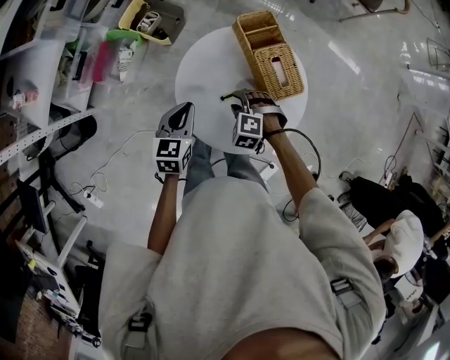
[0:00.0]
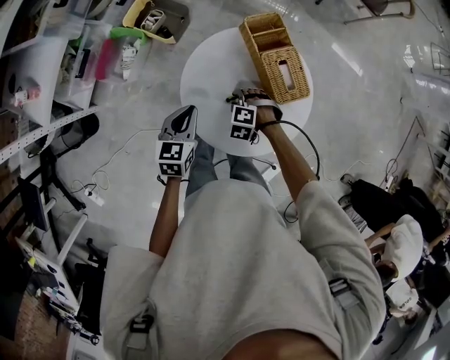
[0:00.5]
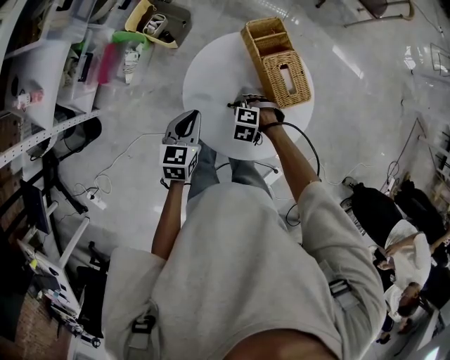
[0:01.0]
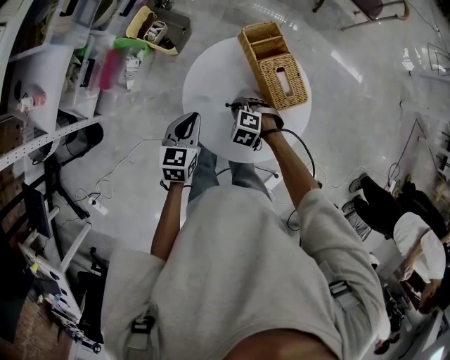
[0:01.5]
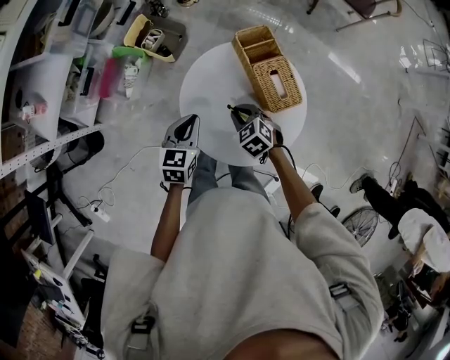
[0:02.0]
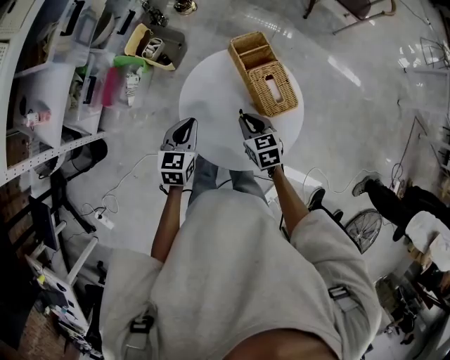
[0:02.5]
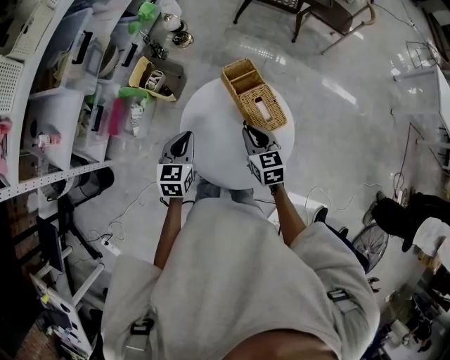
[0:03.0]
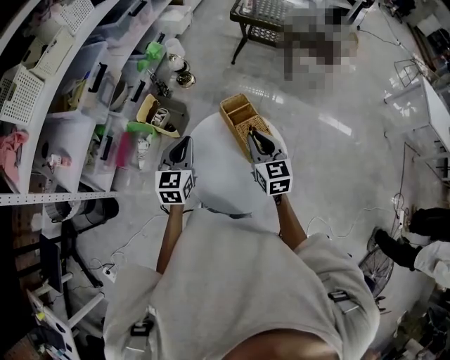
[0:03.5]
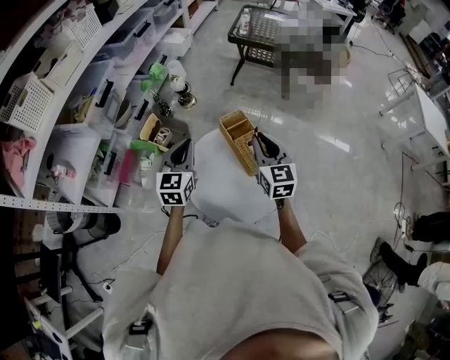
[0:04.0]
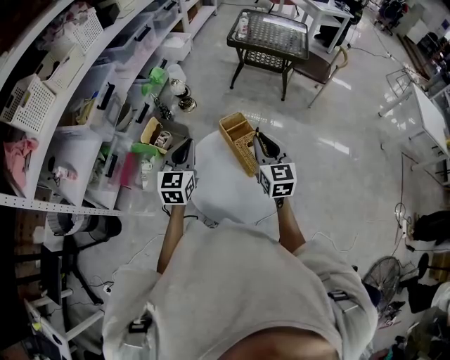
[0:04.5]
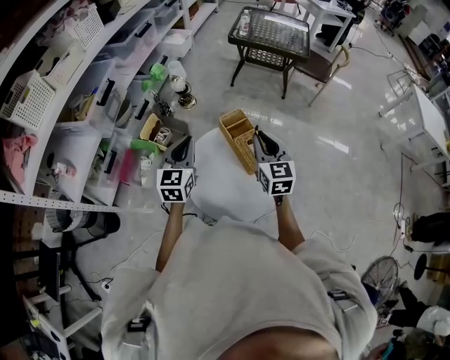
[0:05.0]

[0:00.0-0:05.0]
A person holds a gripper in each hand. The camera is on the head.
0:00.0 to 0:02.5: The right gripper is displaced upward by roughly 5 cm, rotates around the line of its fingers by roughly 60 degrees, clockwise from behind, and closes up.
0:02.5 to 0:05.0: The right gripper heads upward, covering roughly 25 cm, and tilts its fingers approximately 30 degrees upward, while the left gripper heads upward and forward, covering approximately 20 cm, and swivels some 30 degrees.

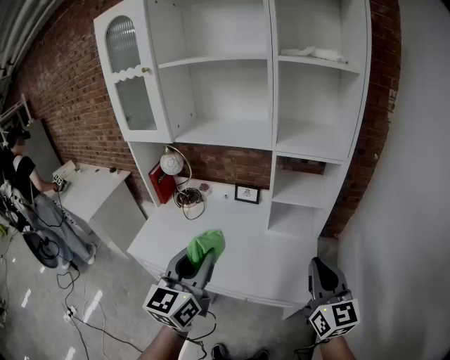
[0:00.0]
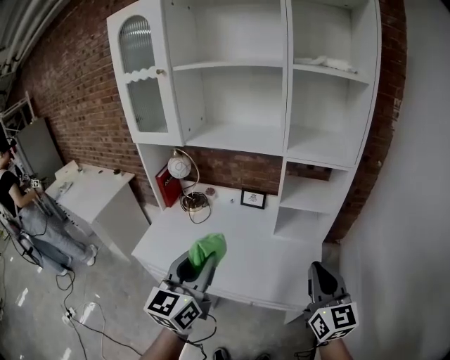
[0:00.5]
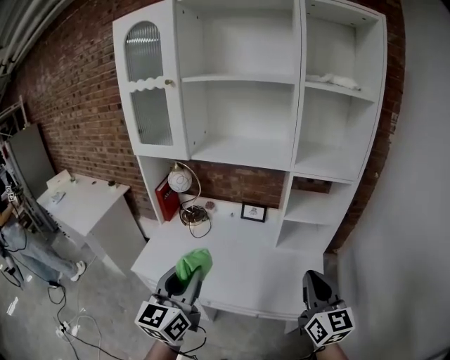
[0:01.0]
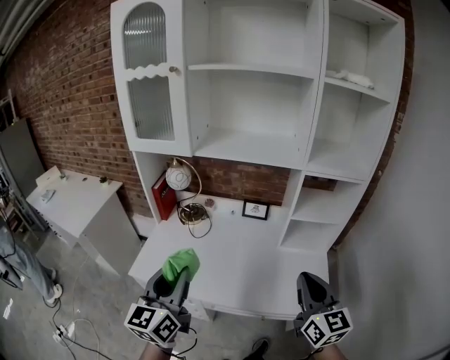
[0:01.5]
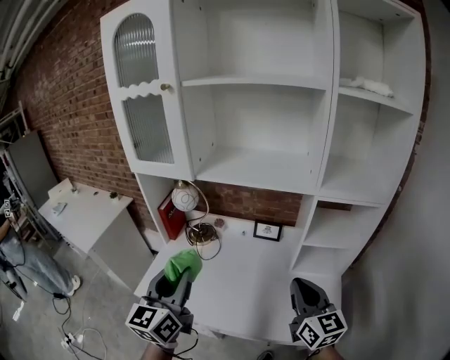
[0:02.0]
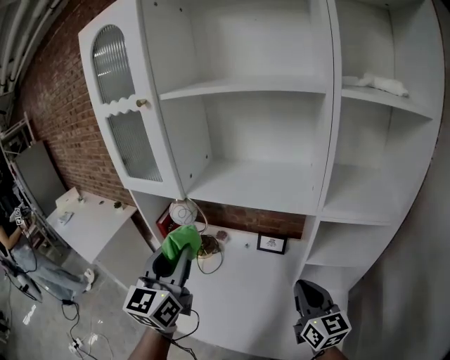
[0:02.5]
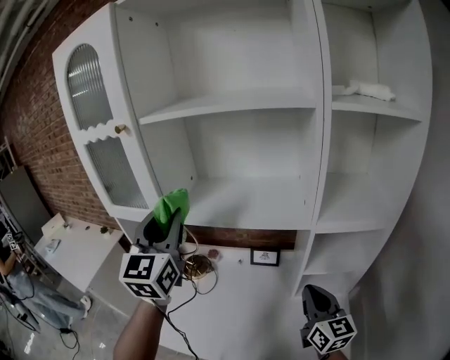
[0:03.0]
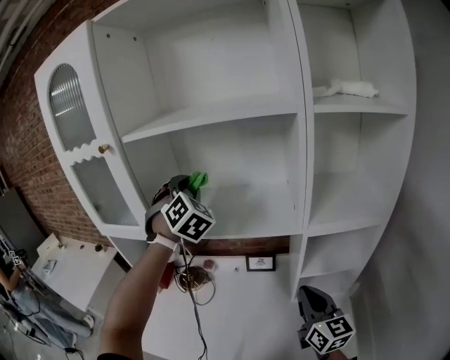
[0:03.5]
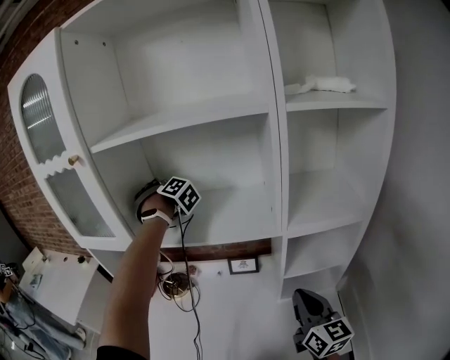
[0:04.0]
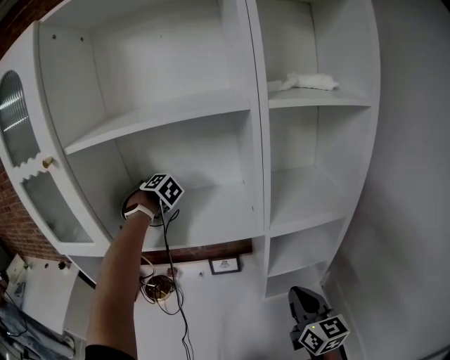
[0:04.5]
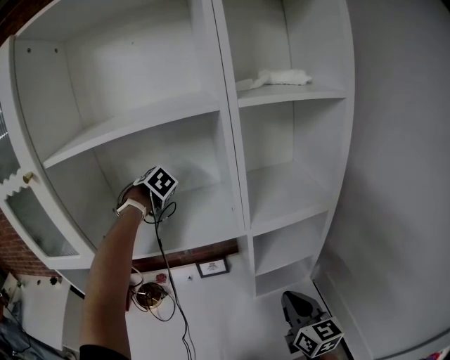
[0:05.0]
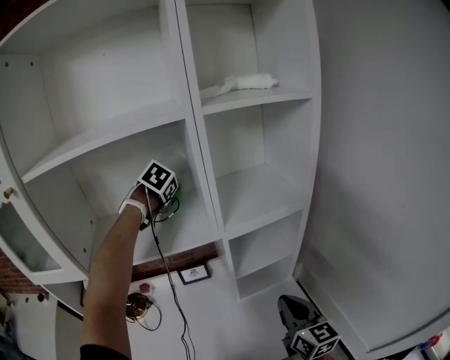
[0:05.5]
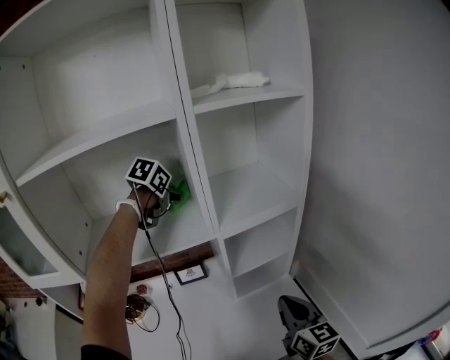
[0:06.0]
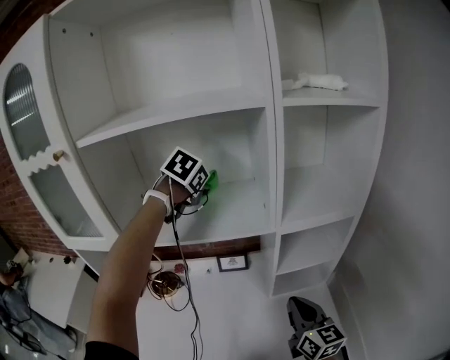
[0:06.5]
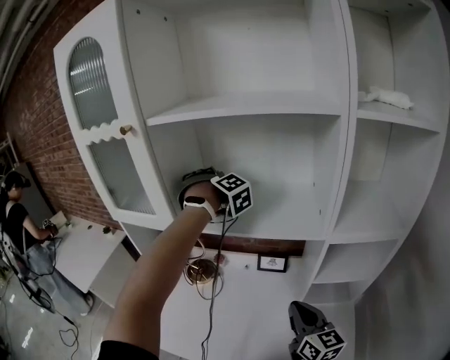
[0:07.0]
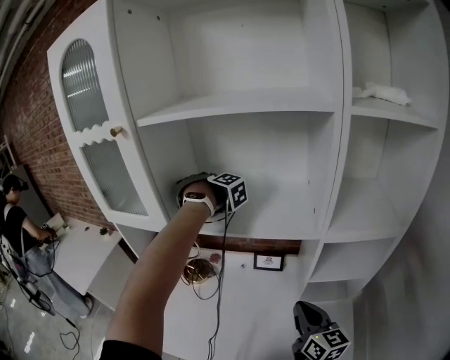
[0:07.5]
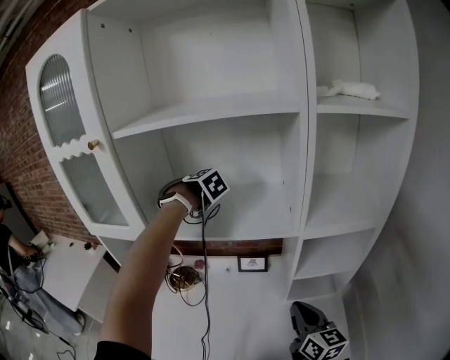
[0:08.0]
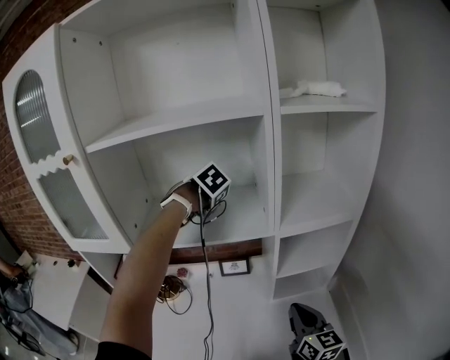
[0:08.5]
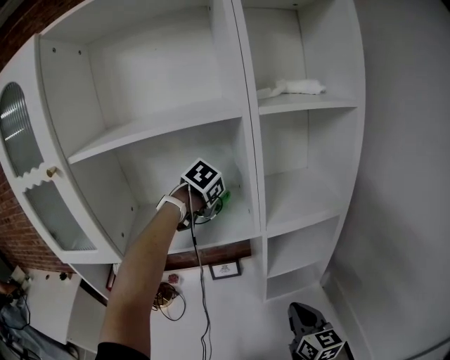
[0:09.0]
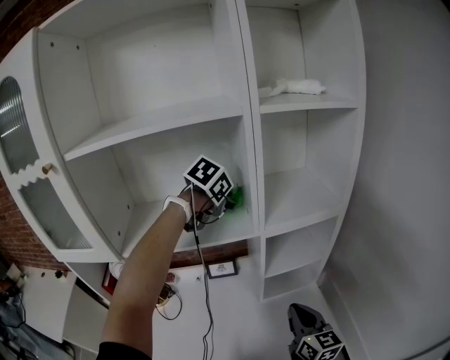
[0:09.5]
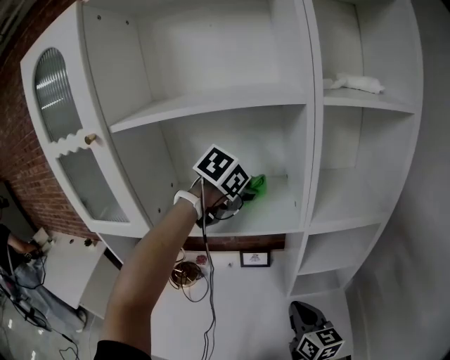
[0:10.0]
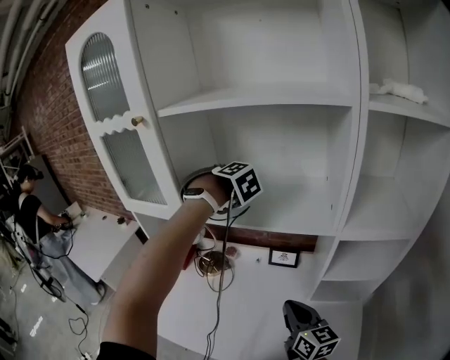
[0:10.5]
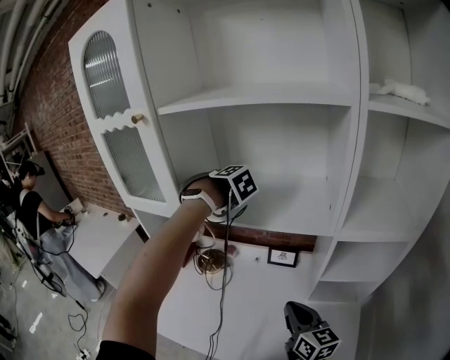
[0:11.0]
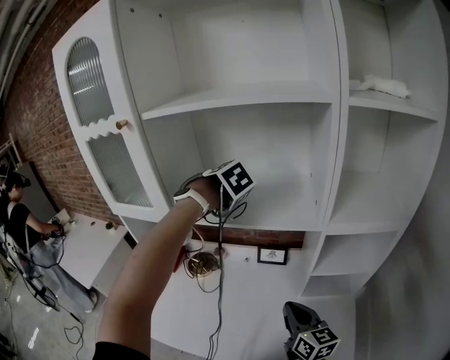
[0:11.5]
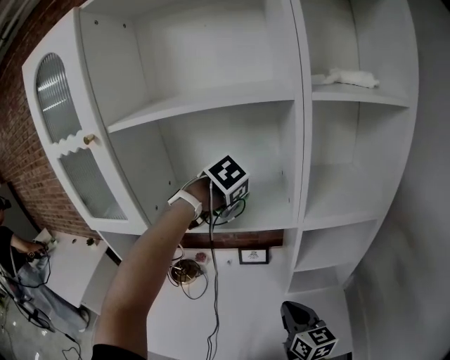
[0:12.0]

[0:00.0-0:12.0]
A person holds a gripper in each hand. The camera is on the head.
0:00.0 to 0:02.0: Both grippers travel together to the left and forward, some 25 cm.
0:02.0 to 0:04.0: The left gripper travels forward by approximately 50 cm, and points its fingers approximately 30 degrees further downward. Meanwhile the right gripper moves forward and to the right, approximately 15 cm.
0:04.0 to 0:06.0: The left gripper ends up some 30 cm from where it was, and turns by approximately 70 degrees. The right gripper shifts by about 10 cm.
0:06.0 to 0:08.0: The right gripper moves approximately 10 cm, and rotates about 20 degrees; the left gripper shifts by about 25 cm, and changes its angle by roughly 50 degrees.
0:08.0 to 0:10.0: The left gripper shifts by approximately 20 cm, and turns by approximately 50 degrees.
0:10.0 to 0:12.0: The left gripper changes its angle by about 20 degrees.

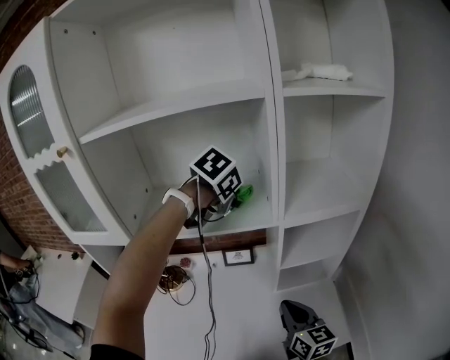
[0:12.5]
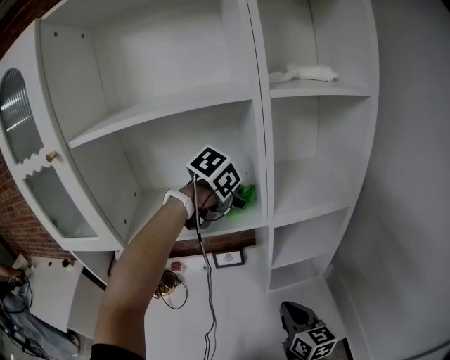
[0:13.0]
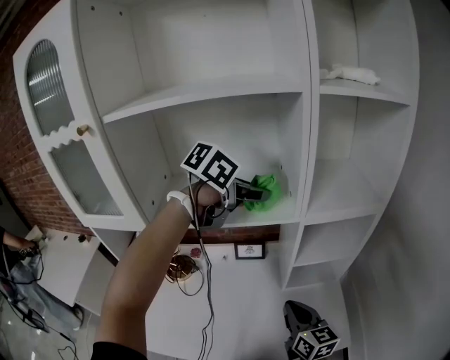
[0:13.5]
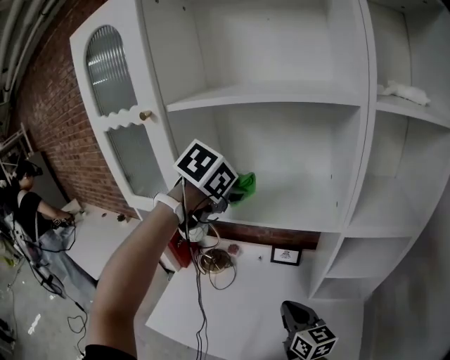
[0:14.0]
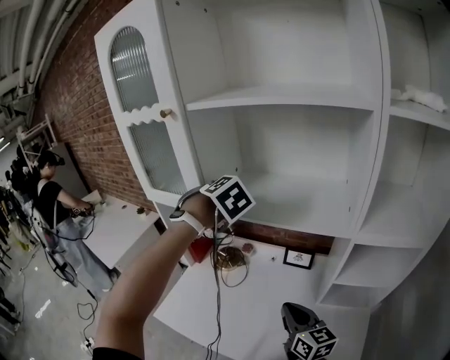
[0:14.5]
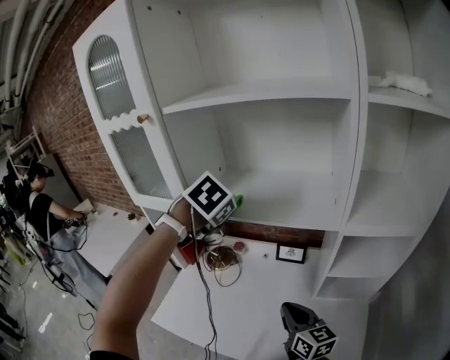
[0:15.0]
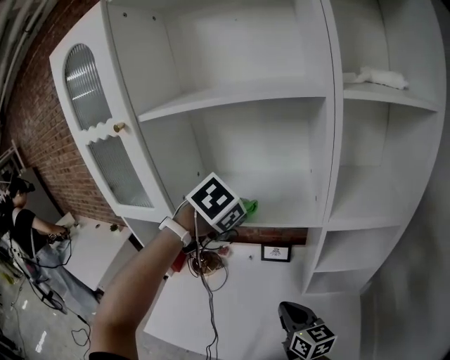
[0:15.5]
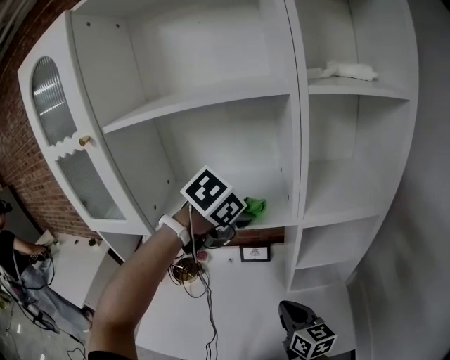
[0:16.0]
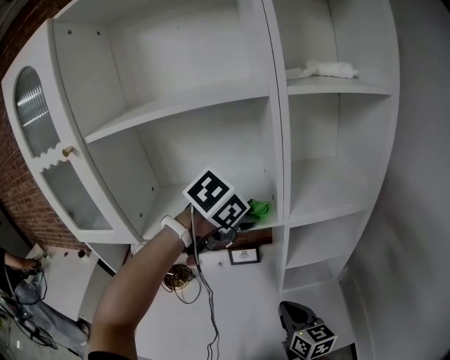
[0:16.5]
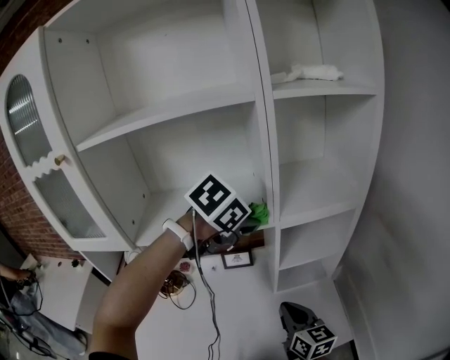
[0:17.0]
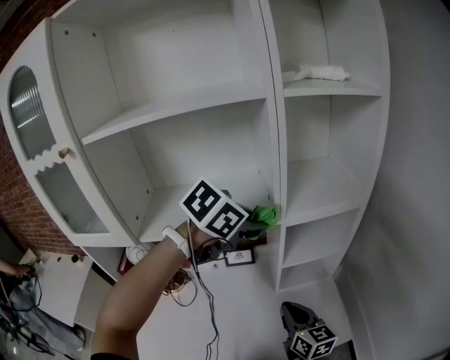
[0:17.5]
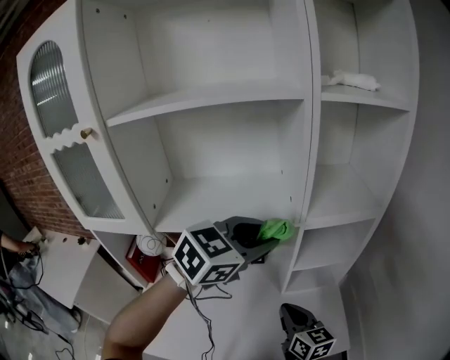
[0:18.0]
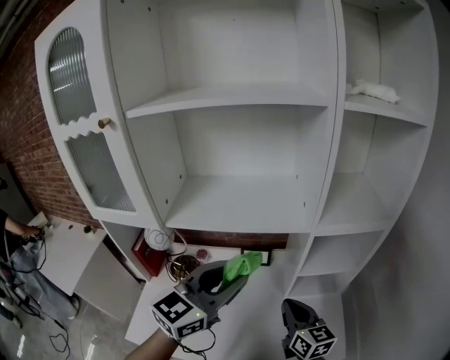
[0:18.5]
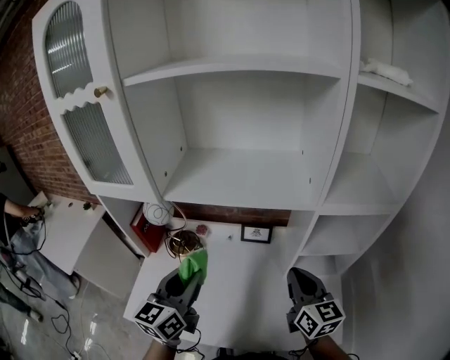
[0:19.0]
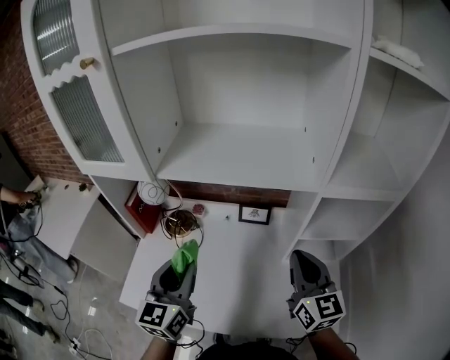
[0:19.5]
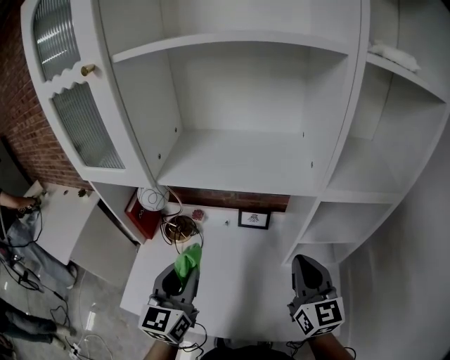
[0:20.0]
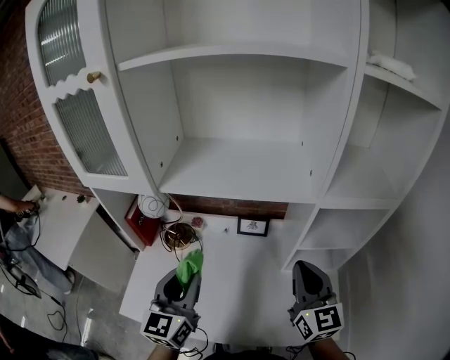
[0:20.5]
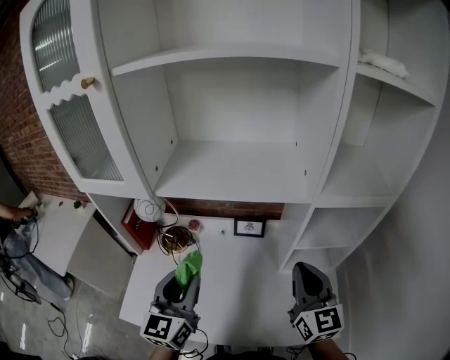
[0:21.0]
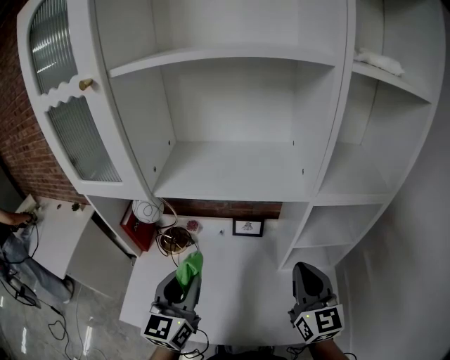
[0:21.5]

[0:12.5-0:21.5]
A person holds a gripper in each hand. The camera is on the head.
0:12.5 to 0:14.5: The right gripper shifts by roughly 10 cm, and turns by about 30 degrees; the left gripper moves some 25 cm, and changes its angle by about 40 degrees.
0:14.5 to 0:17.0: The right gripper moves some 15 cm, and turns by approximately 30 degrees; the left gripper moves roughly 30 cm, and swivels some 60 degrees.
0:17.0 to 0:19.5: The right gripper goes roughly 5 cm upward, while the left gripper moves about 35 cm, and angles its fingers upward, by about 50 degrees.
0:19.5 to 0:21.5: The grippers make only small movements.

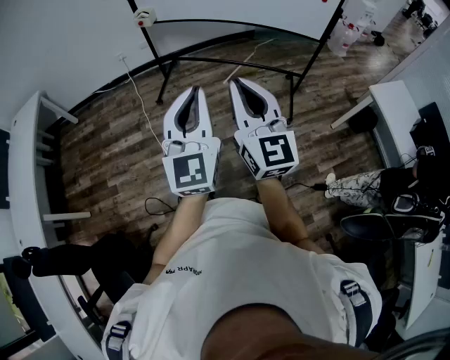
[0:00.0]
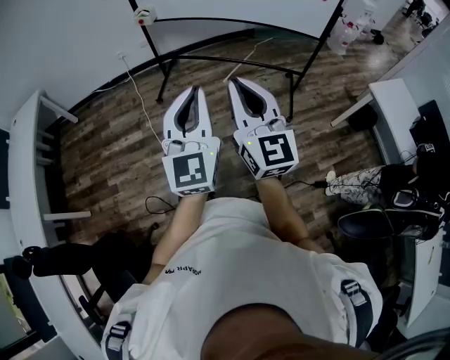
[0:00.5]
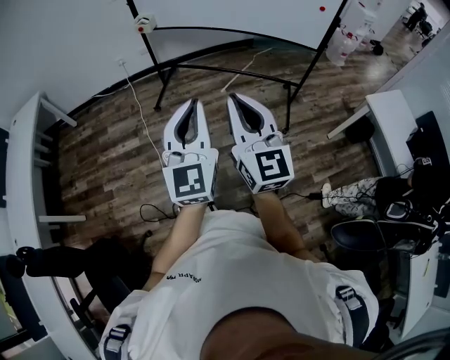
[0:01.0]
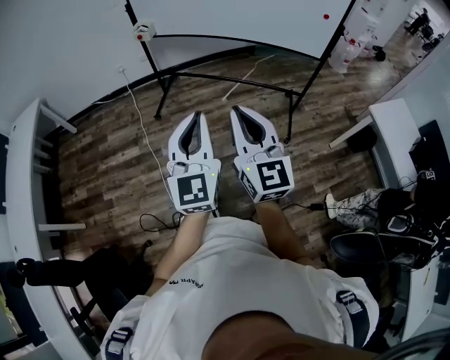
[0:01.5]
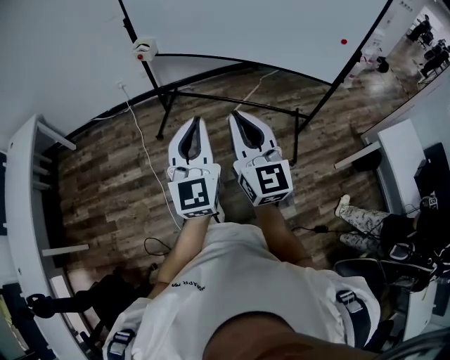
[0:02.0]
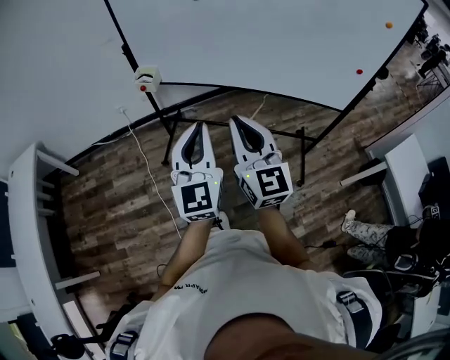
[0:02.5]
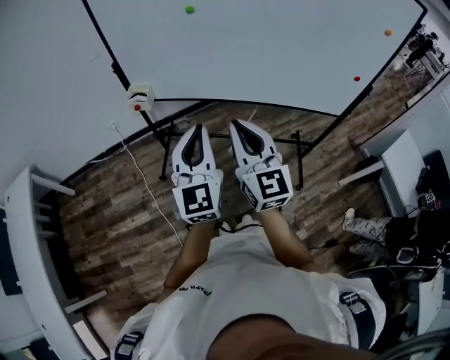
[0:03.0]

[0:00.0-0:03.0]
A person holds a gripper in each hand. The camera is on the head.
0:00.0 to 0:01.5: The right gripper moves some 5 cm; the left gripper changes place by some 5 cm.
0:01.5 to 0:03.0: Both grippers are carried forward, roughly 40 cm.
